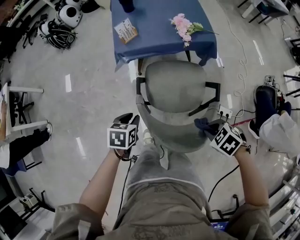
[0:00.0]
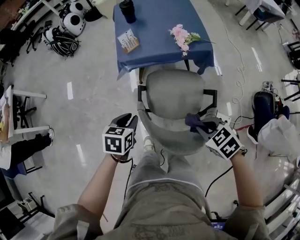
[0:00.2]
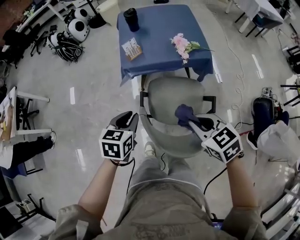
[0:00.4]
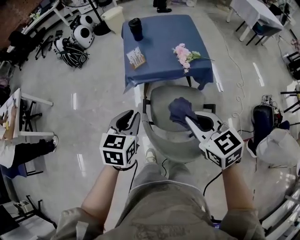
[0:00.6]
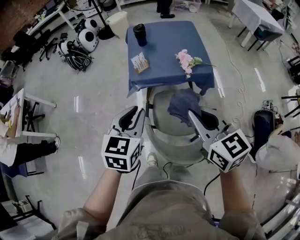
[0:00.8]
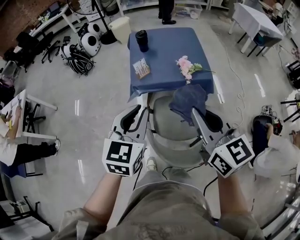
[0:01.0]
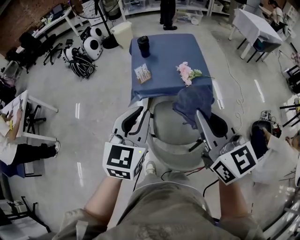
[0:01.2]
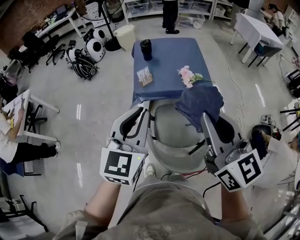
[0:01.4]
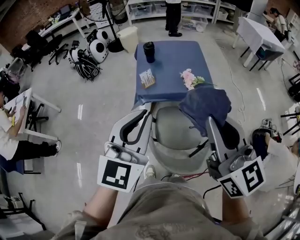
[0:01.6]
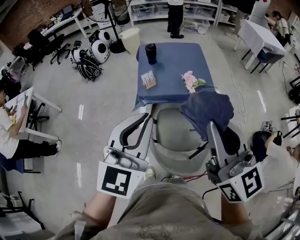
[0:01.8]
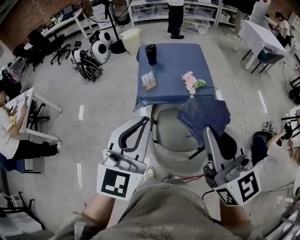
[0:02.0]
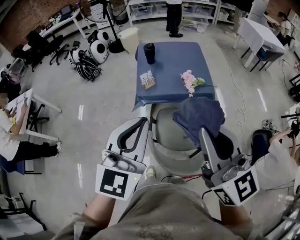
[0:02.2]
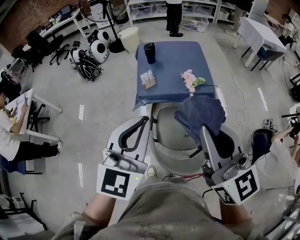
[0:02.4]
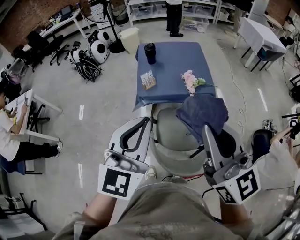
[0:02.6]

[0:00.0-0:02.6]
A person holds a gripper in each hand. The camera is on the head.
0:00.0 to 0:01.2: Both grippers move upward, some 40 cm. The left gripper tips its fingers upward by about 40 degrees. The right gripper tilts its fingers approximately 70 degrees upward.
0:01.2 to 0:02.6: Both grippers travel together upward, about 5 cm.

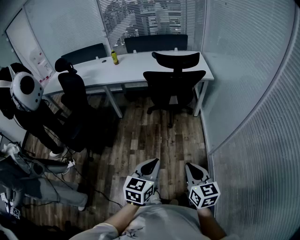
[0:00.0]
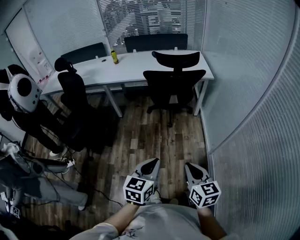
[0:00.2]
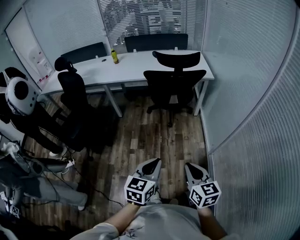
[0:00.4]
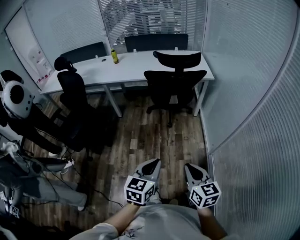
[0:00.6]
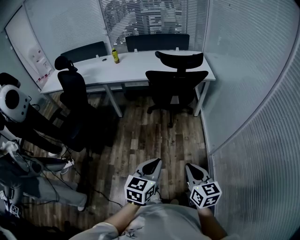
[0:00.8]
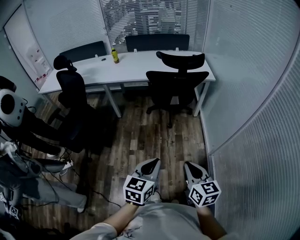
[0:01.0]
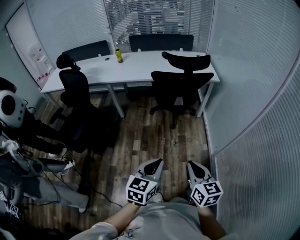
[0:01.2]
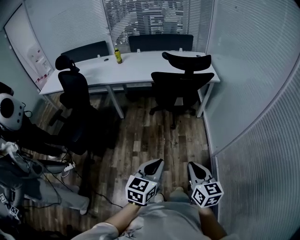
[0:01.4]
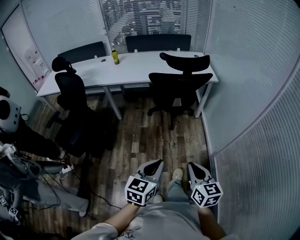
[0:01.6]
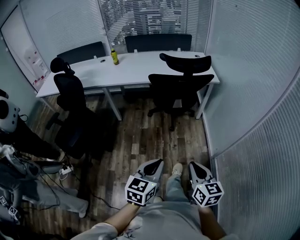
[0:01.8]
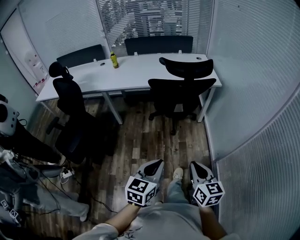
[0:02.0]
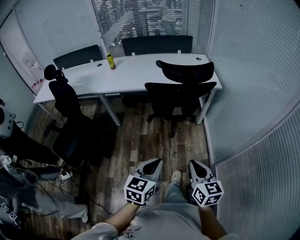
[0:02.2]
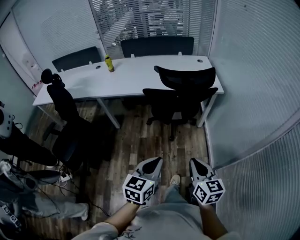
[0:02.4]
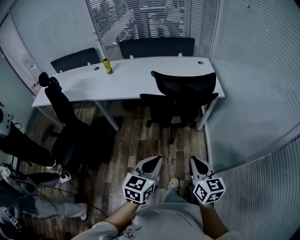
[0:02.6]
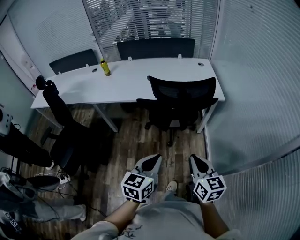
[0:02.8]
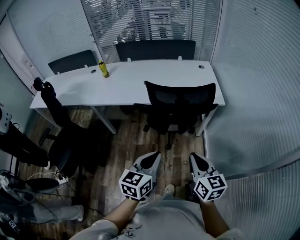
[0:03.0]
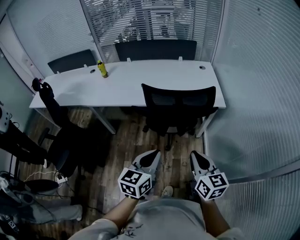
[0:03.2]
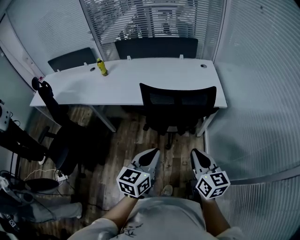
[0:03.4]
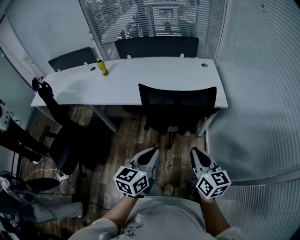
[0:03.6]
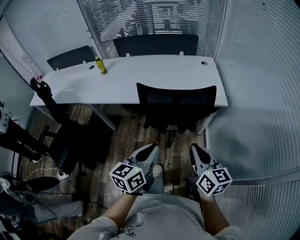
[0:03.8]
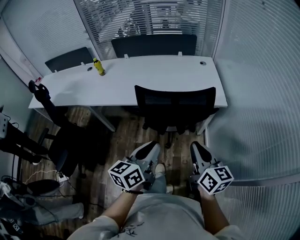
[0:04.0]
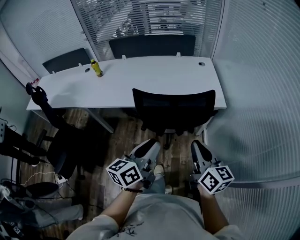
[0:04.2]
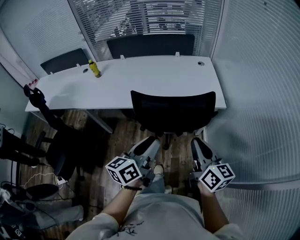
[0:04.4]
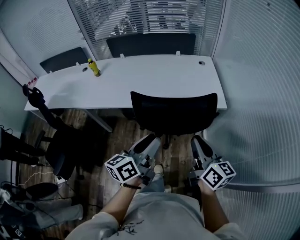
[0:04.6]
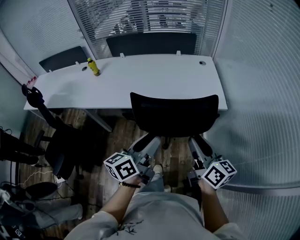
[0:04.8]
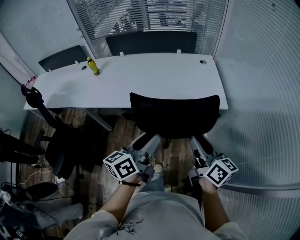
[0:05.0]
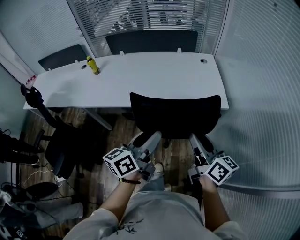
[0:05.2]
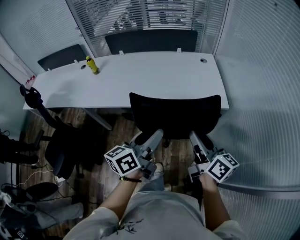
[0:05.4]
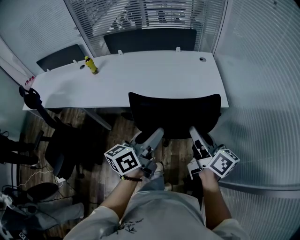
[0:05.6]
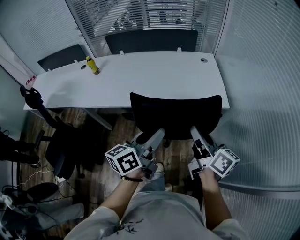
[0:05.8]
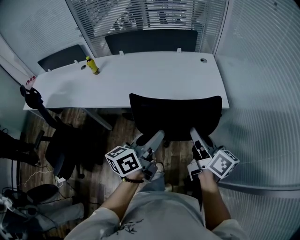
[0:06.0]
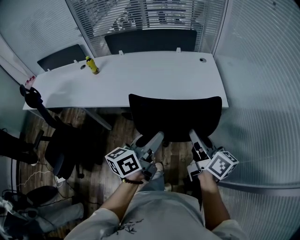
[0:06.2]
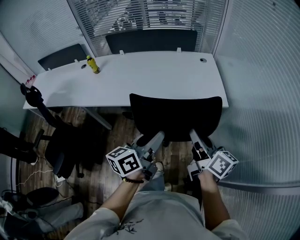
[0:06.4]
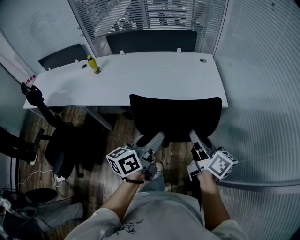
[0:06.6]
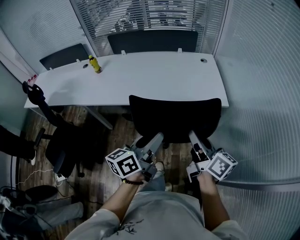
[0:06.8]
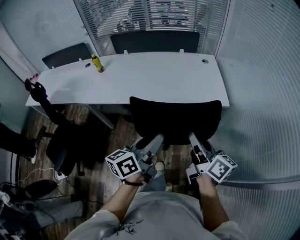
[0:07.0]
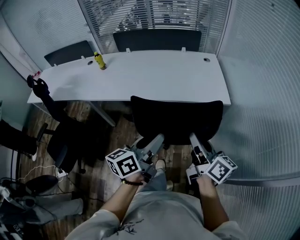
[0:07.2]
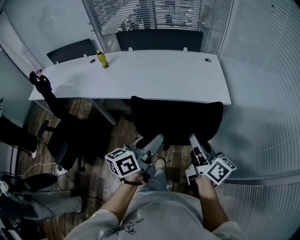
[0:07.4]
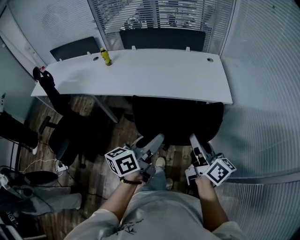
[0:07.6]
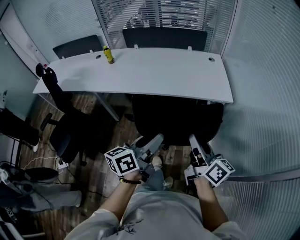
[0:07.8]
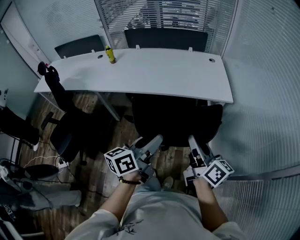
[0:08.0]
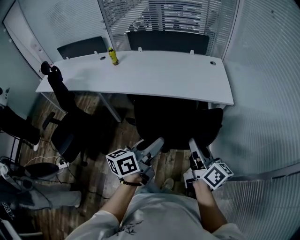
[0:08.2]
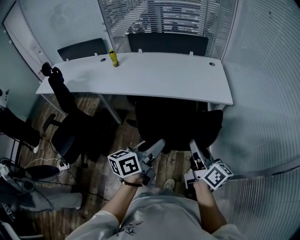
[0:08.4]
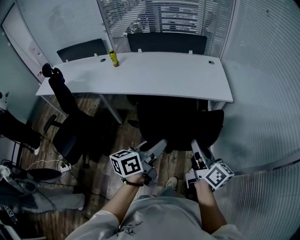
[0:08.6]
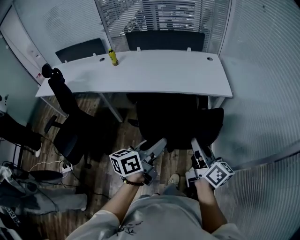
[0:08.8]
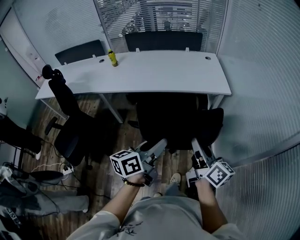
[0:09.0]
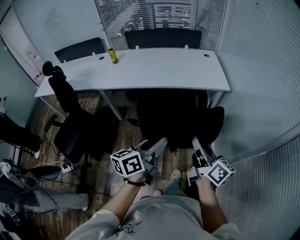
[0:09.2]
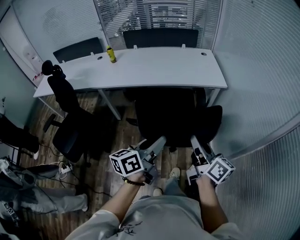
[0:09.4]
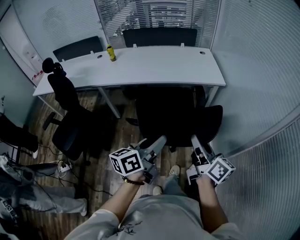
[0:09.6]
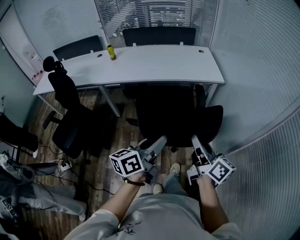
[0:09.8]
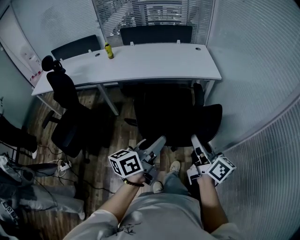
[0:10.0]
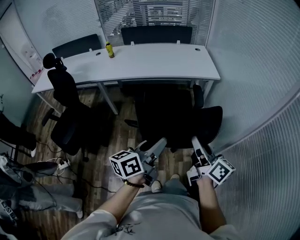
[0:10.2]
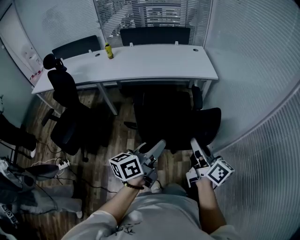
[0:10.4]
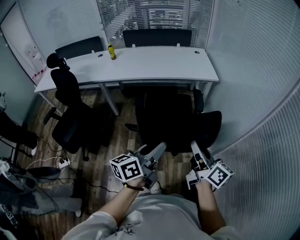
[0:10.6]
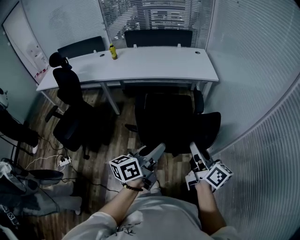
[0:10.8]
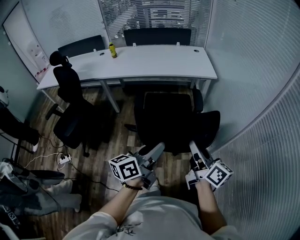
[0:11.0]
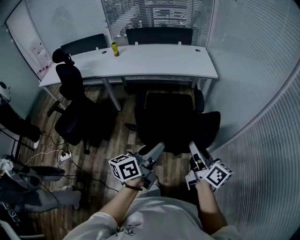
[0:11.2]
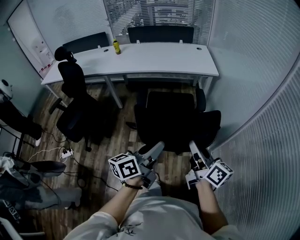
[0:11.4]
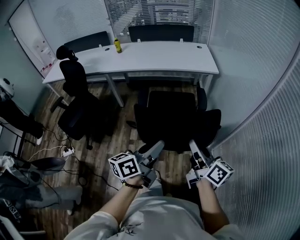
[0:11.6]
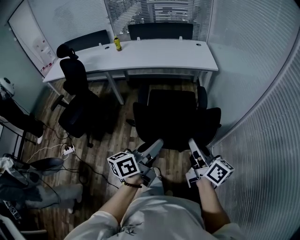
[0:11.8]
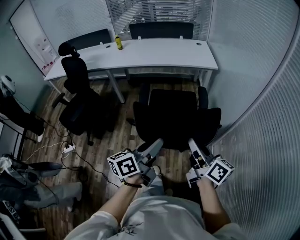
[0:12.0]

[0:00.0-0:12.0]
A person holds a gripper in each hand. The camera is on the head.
0:00.0 to 0:01.6: The two grippers go some 10 cm to the left and forward.
0:01.6 to 0:03.0: Both grippers move forward, roughly 40 cm.
0:03.0 to 0:04.4: The grippers both shift forward by about 15 cm. The left gripper rotates roughly 30 degrees, and opens its fingers.
0:04.4 to 0:06.0: Both grippers travel together forward, about 10 cm. The right gripper opens its fingers.
0:06.0 to 0:07.6: Both grippers travel together backward, about 15 cm.
0:07.6 to 0:09.0: Both grippers move backward, roughly 15 cm.
0:09.0 to 0:10.4: The grippers both shift backward by some 20 cm.
0:10.4 to 0:12.0: The grippers both shift backward by roughly 20 cm.

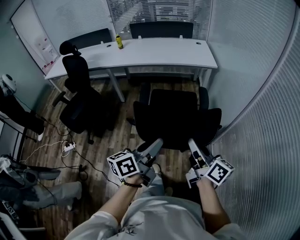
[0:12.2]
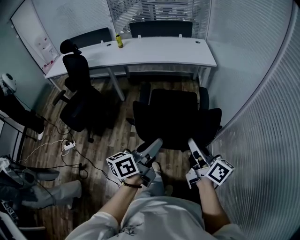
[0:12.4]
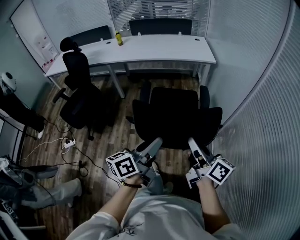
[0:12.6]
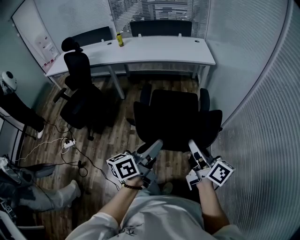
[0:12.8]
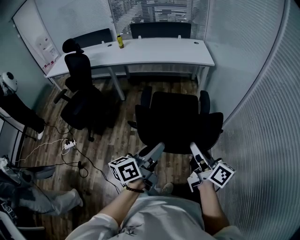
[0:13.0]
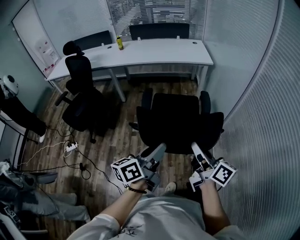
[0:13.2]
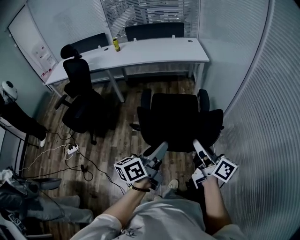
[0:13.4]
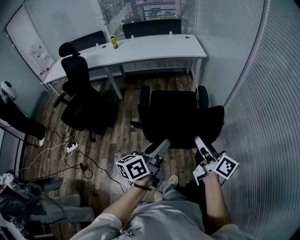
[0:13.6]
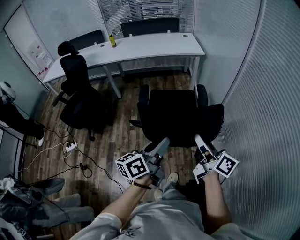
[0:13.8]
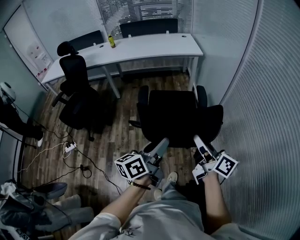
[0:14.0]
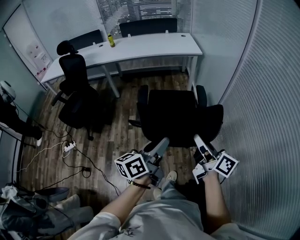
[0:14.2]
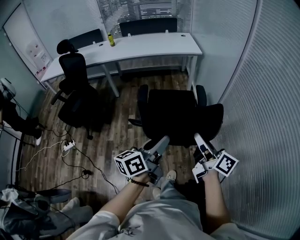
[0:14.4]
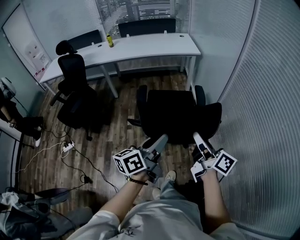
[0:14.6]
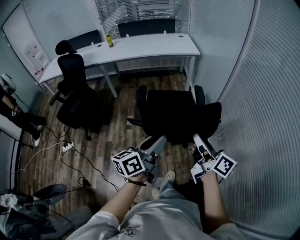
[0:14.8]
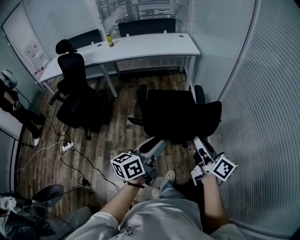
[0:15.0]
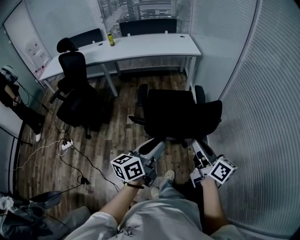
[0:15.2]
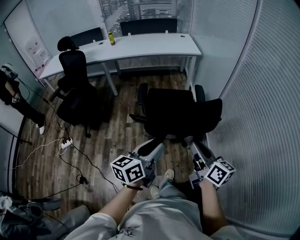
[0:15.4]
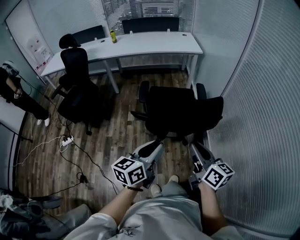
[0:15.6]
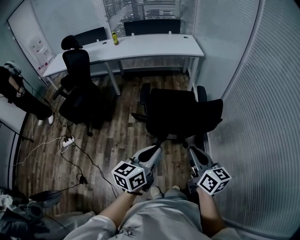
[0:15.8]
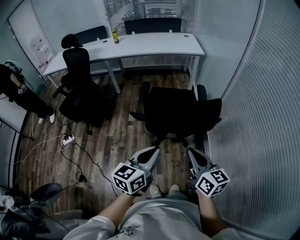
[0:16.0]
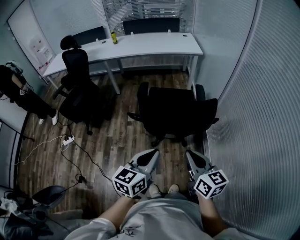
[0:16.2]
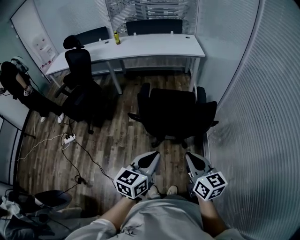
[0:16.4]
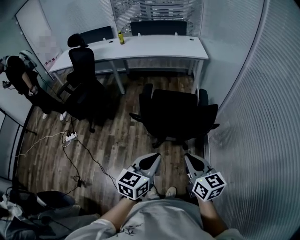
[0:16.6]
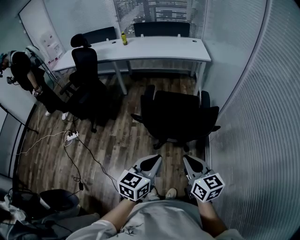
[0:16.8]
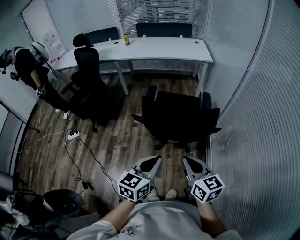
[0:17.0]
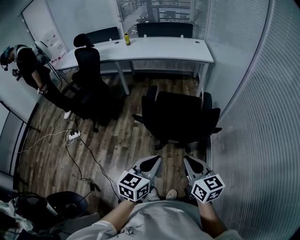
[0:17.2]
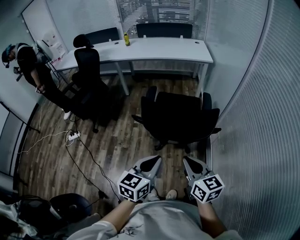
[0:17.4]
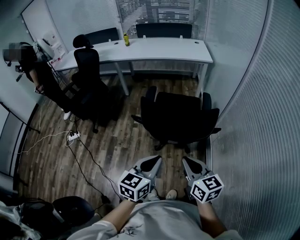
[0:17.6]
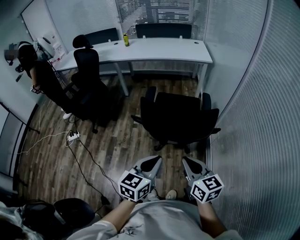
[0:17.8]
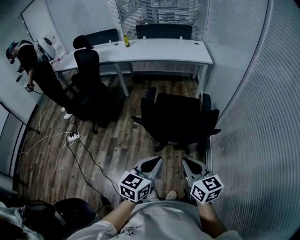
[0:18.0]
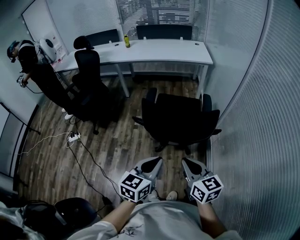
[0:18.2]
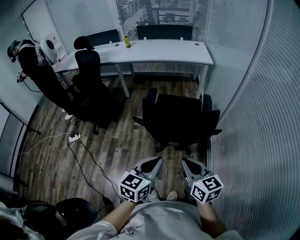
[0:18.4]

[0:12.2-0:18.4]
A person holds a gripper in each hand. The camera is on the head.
0:12.2 to 0:13.8: The two grippers go about 20 cm backward.
0:13.8 to 0:15.4: Both grippers move backward, approximately 5 cm.
0:15.4 to 0:16.8: The right gripper swivels some 30 degrees, and closes its fingers. The left gripper moves roughly 5 cm, changes its angle by roughly 20 degrees, and closes up.
0:16.8 to 0:18.4: The grippers stay close to where they were, moving slightly.

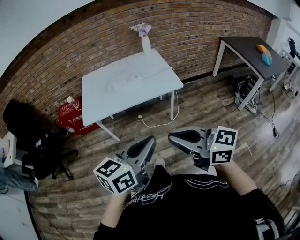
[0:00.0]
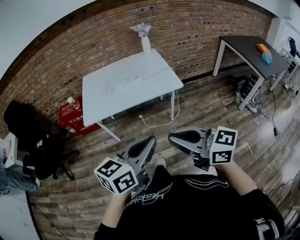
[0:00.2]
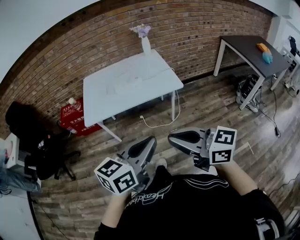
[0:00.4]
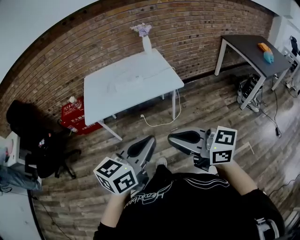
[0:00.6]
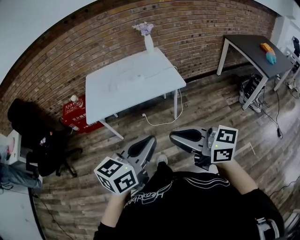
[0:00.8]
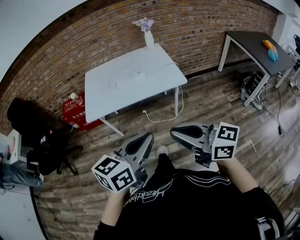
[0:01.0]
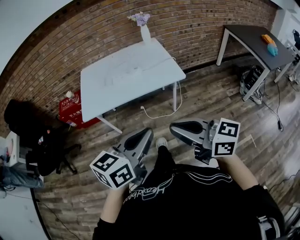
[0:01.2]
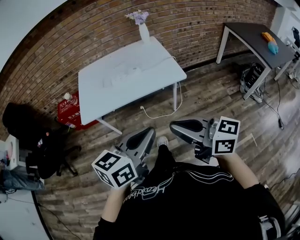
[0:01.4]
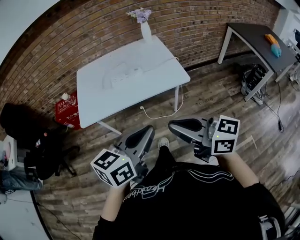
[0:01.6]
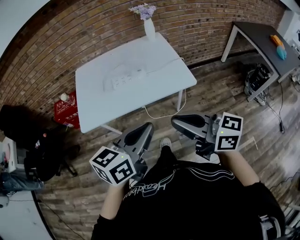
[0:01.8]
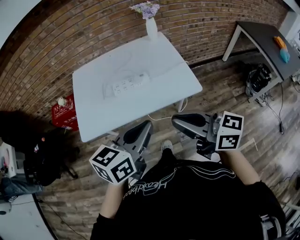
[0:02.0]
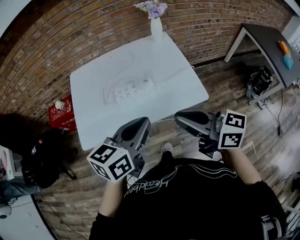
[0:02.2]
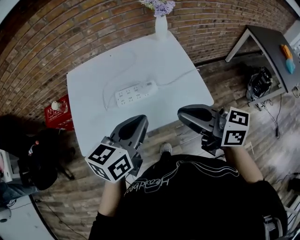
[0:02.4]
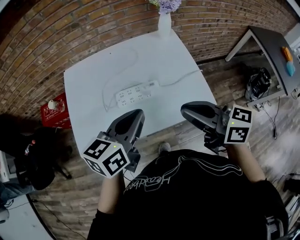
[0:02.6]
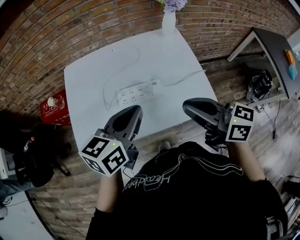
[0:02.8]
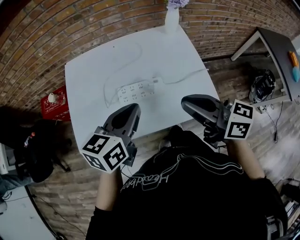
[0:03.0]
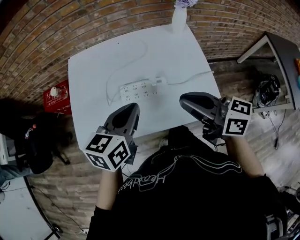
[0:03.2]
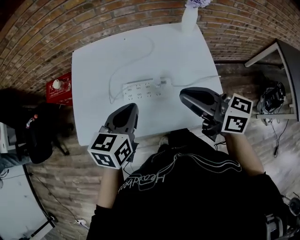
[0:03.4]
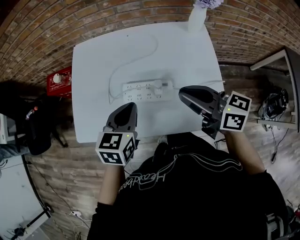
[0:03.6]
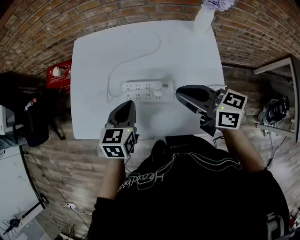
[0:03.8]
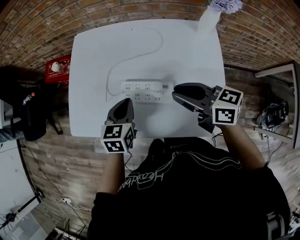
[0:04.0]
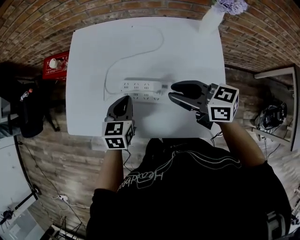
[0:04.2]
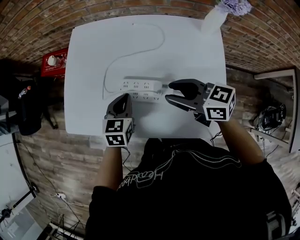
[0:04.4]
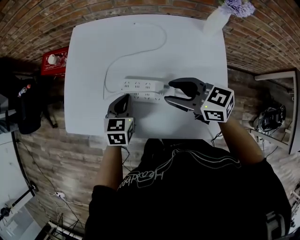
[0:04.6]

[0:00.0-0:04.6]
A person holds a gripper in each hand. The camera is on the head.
0:00.0 to 0:01.6: Both grippers travel together forward, approximately 10 cm.
0:01.6 to 0:03.0: The grippers both shift forward by roughly 40 cm.
0:03.0 to 0:04.6: Both grippers move downward, about 20 cm. The left gripper turns by roughly 40 degrees; the right gripper changes its angle by approximately 40 degrees, and opens.
